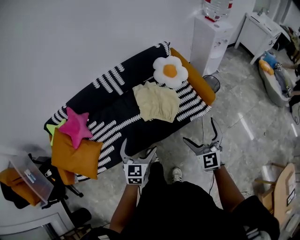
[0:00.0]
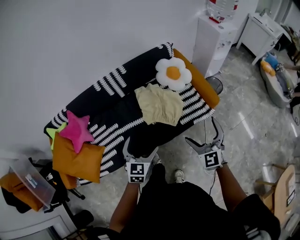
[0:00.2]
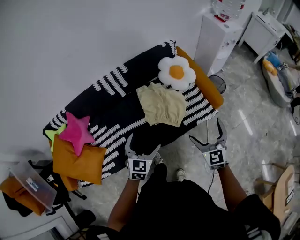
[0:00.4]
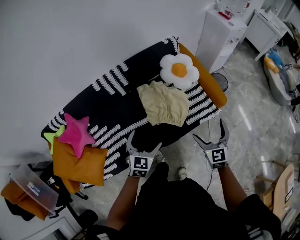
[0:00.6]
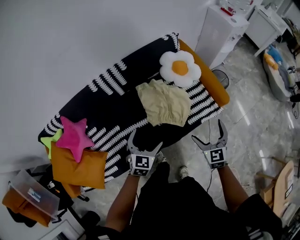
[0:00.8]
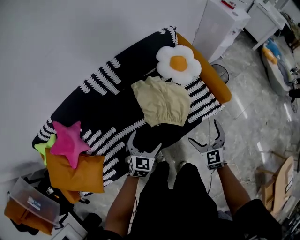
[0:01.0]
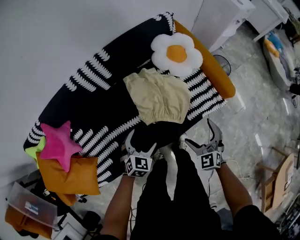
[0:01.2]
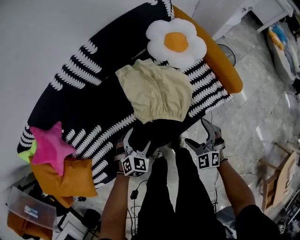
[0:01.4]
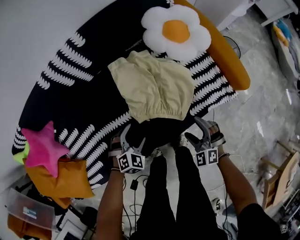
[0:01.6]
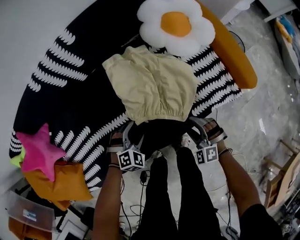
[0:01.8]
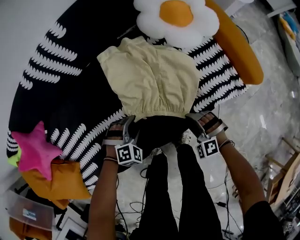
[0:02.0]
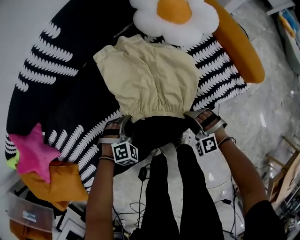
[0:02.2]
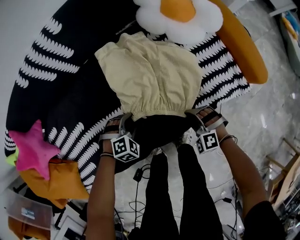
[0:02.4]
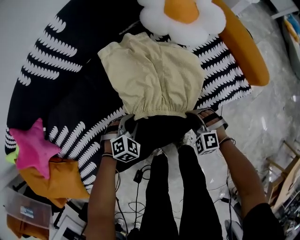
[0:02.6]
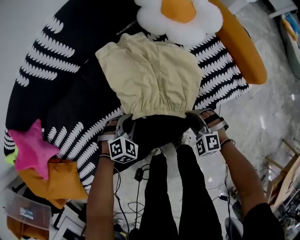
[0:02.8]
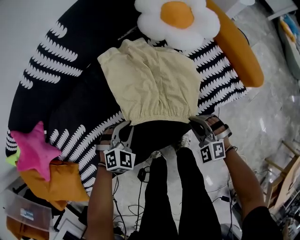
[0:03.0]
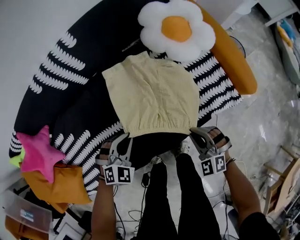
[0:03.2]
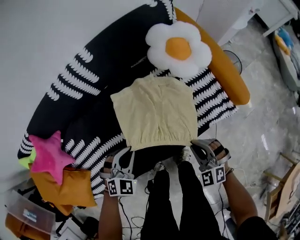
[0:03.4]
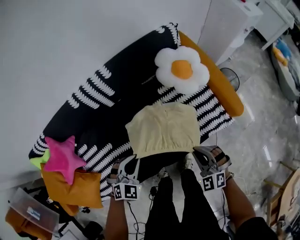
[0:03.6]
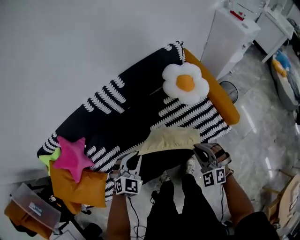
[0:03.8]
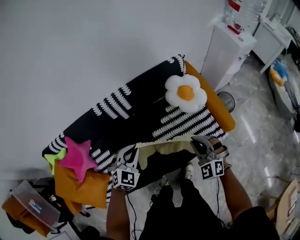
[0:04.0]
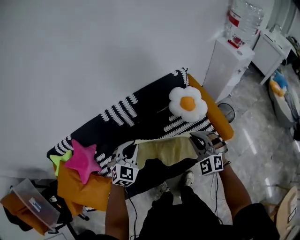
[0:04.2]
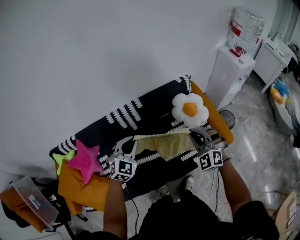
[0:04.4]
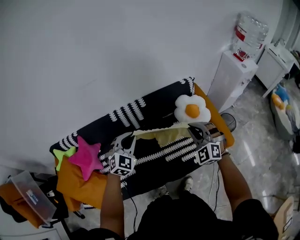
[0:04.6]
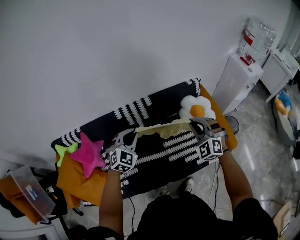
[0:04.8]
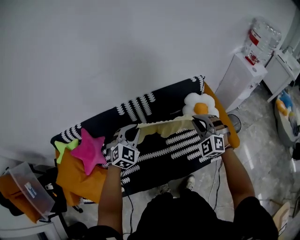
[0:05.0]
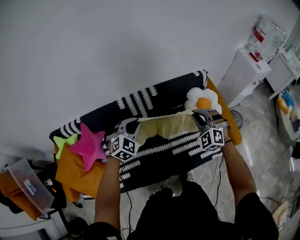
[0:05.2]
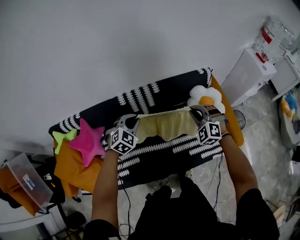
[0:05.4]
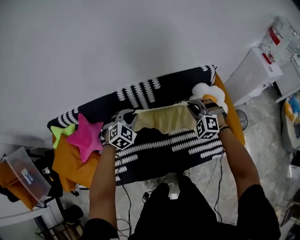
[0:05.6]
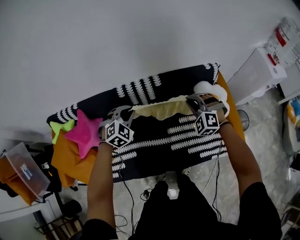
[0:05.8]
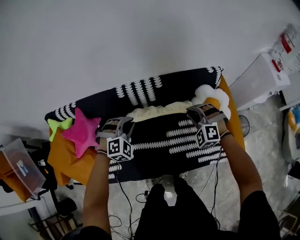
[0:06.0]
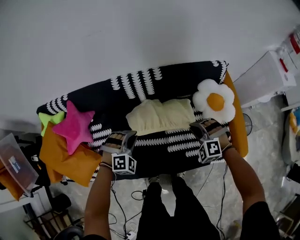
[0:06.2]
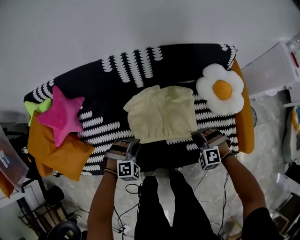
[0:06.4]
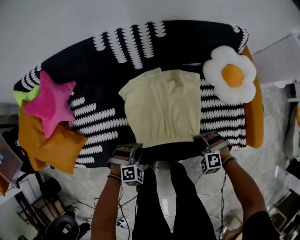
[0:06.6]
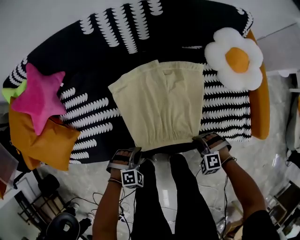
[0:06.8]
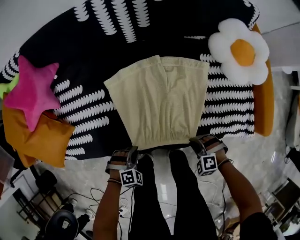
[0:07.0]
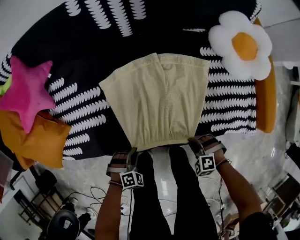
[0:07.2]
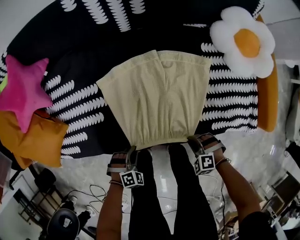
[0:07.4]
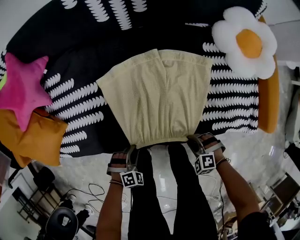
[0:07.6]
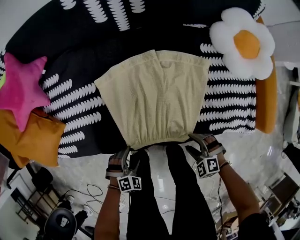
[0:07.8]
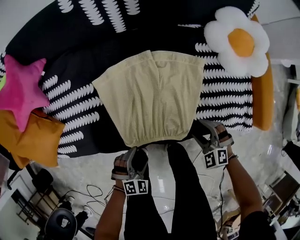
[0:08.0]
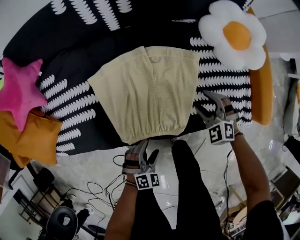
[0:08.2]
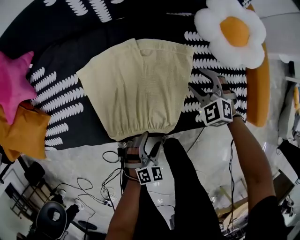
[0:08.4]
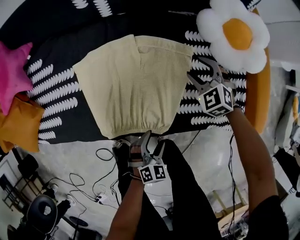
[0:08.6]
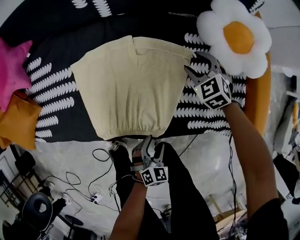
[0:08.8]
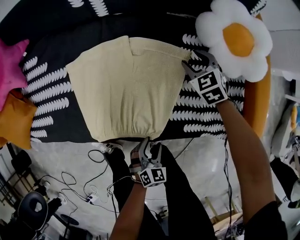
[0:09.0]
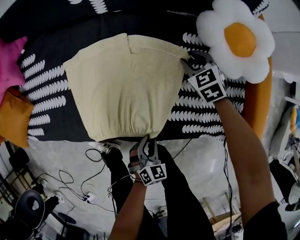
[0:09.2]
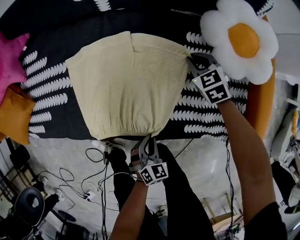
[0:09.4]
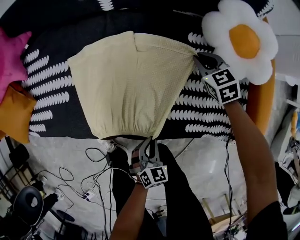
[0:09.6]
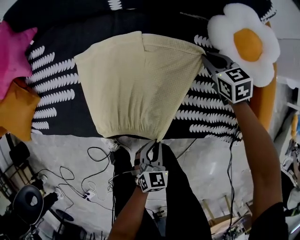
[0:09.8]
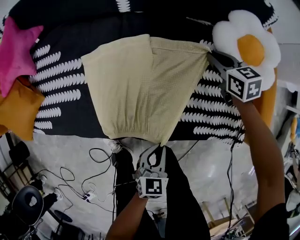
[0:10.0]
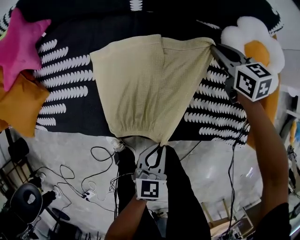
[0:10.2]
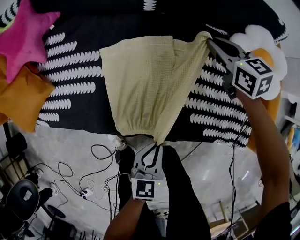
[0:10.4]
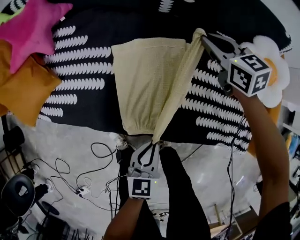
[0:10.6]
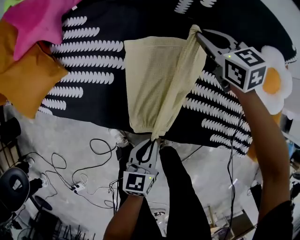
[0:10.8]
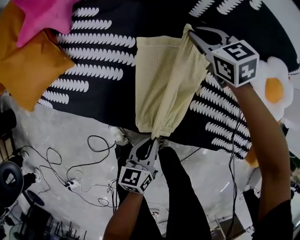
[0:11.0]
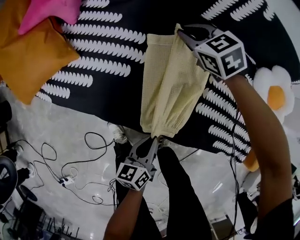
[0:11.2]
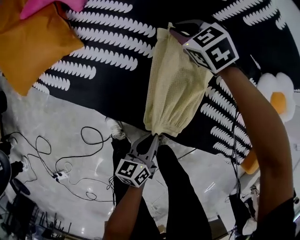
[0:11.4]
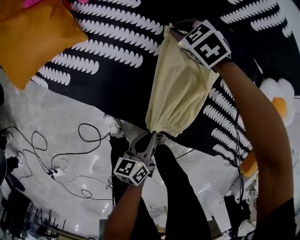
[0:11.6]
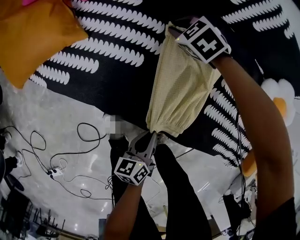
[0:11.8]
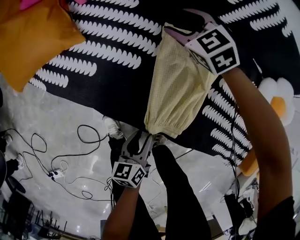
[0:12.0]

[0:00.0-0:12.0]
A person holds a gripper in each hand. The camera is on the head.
0:00.0 to 0:01.6: The left gripper shifts roughly 40 cm downward and forward, and points its fingers approximately 30 degrees further downward; the right gripper heads downward, covering approximately 40 cm, and tips its fingers downward by about 30 degrees.
0:01.6 to 0:03.0: The right gripper moves downward, about 5 cm, and closes its fingers. The left gripper closes.
0:03.0 to 0:04.4: Both grippers travel together upward, roughly 50 cm. The right gripper swivels approximately 30 degrees; the left gripper rotates some 30 degrees.
0:04.4 to 0:06.0: The left gripper moves downward, to the left and forward, about 15 cm, and swivels about 30 degrees, while the right gripper heads forward, downward and to the left, covering roughly 25 cm, and changes its angle by some 30 degrees.
0:06.0 to 0:07.6: The two grippers go some 60 cm downward and backward. The left gripper changes its angle by some 30 degrees. The right gripper changes its angle by approximately 40 degrees.
0:07.6 to 0:09.0: The left gripper heads to the right, covering approximately 25 cm, and rotates around the line of its fingers by roughly 40 degrees, counterclockwise from behind. The right gripper heads forward, covering approximately 35 cm, and changes its angle by about 40 degrees.
0:09.0 to 0:10.4: The grippers both shift upward, to the left and forward by approximately 20 cm. The left gripper turns by some 40 degrees, and closes its fingers; the right gripper turns by some 30 degrees.
0:10.4 to 0:12.0: The right gripper is displaced to the left by some 35 cm, twists about 40 degrees counterclockwise, seen from behind, and opens, while the left gripper moves to the left and downward, approximately 20 cm, and twists approximately 40 degrees counterclockwise, seen from behind.

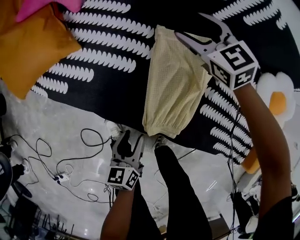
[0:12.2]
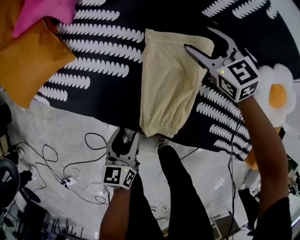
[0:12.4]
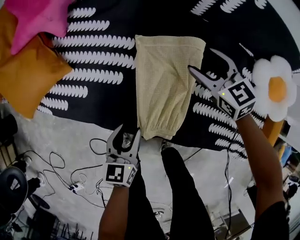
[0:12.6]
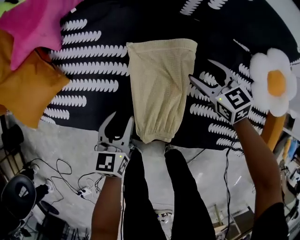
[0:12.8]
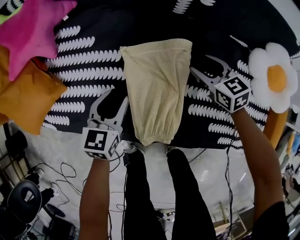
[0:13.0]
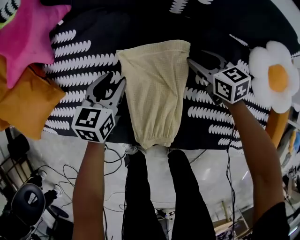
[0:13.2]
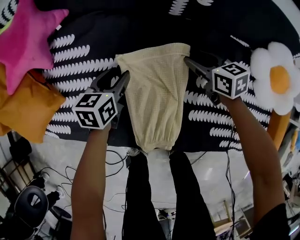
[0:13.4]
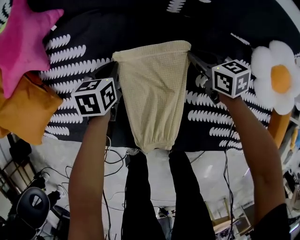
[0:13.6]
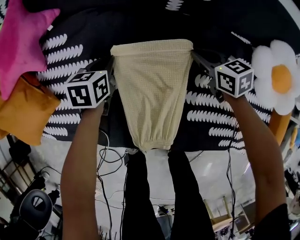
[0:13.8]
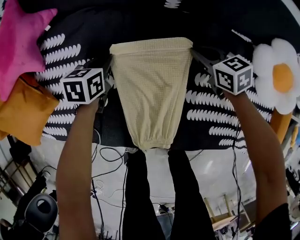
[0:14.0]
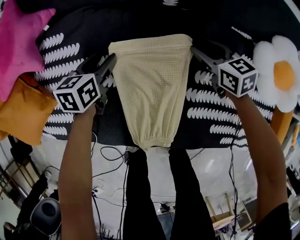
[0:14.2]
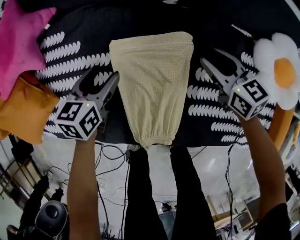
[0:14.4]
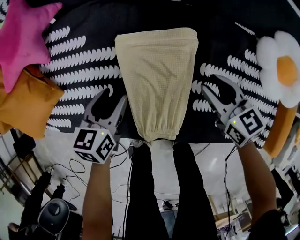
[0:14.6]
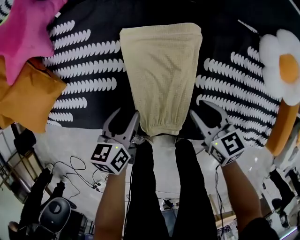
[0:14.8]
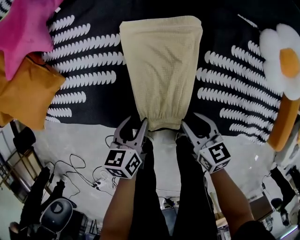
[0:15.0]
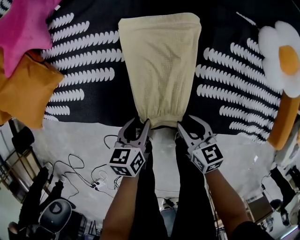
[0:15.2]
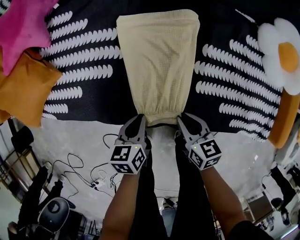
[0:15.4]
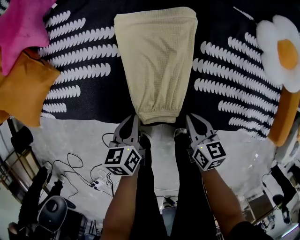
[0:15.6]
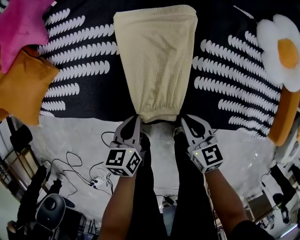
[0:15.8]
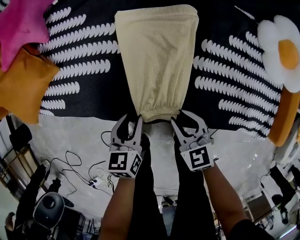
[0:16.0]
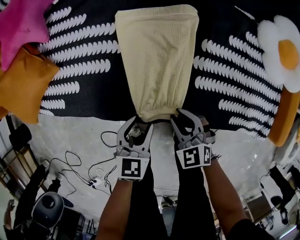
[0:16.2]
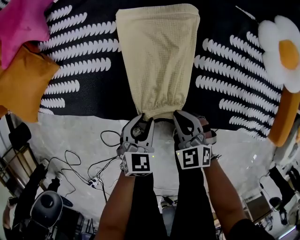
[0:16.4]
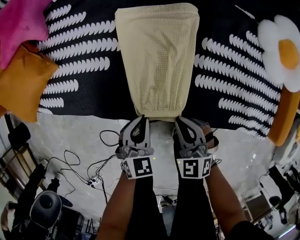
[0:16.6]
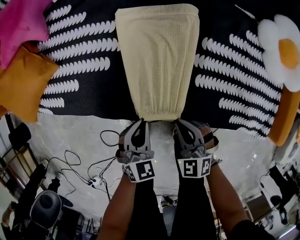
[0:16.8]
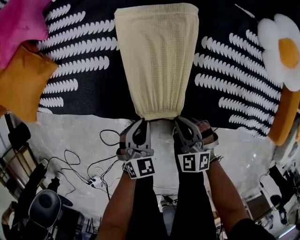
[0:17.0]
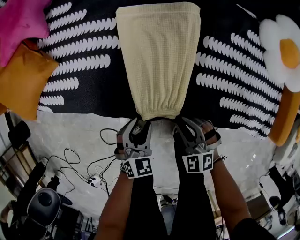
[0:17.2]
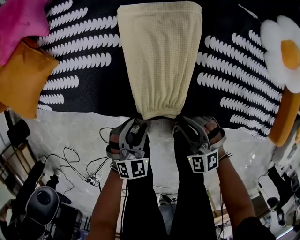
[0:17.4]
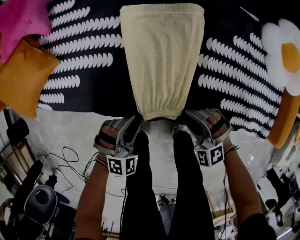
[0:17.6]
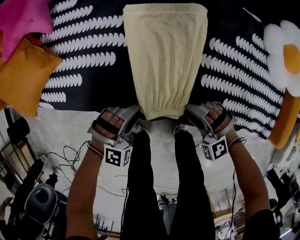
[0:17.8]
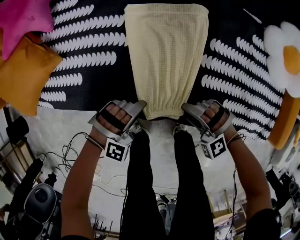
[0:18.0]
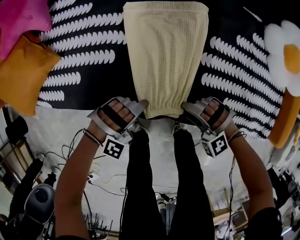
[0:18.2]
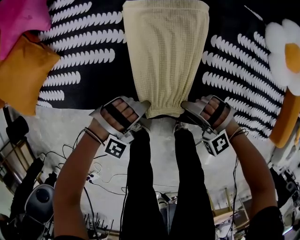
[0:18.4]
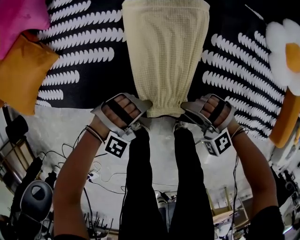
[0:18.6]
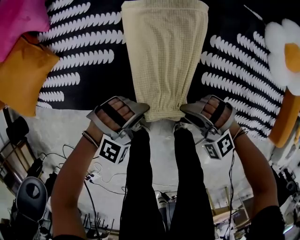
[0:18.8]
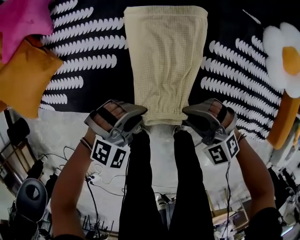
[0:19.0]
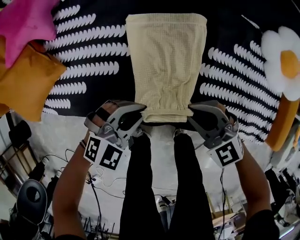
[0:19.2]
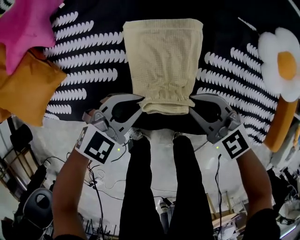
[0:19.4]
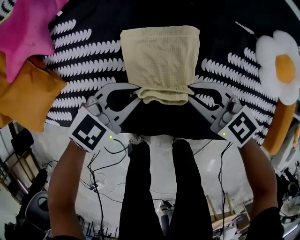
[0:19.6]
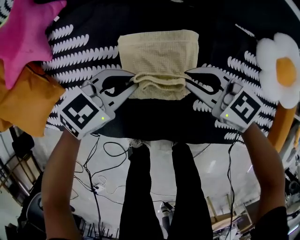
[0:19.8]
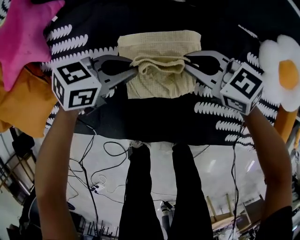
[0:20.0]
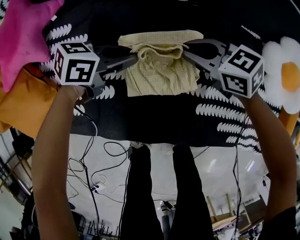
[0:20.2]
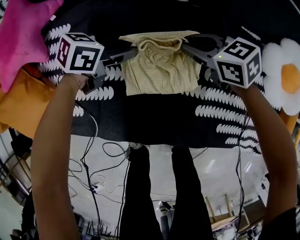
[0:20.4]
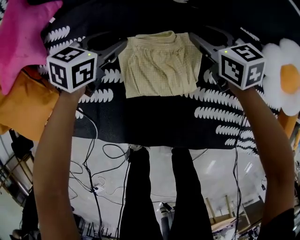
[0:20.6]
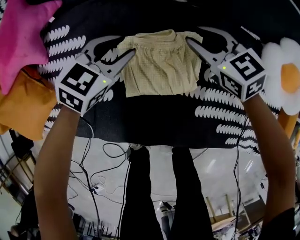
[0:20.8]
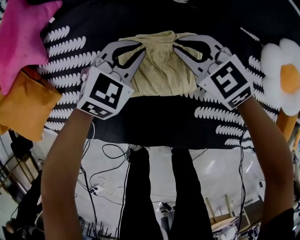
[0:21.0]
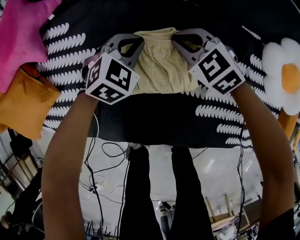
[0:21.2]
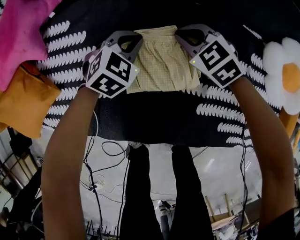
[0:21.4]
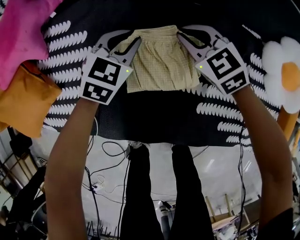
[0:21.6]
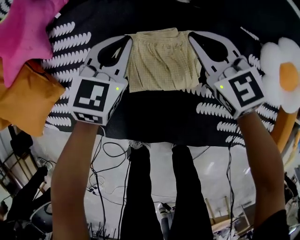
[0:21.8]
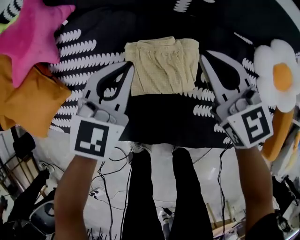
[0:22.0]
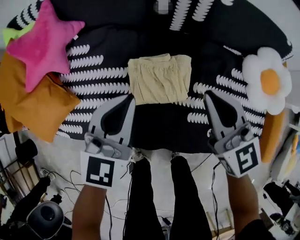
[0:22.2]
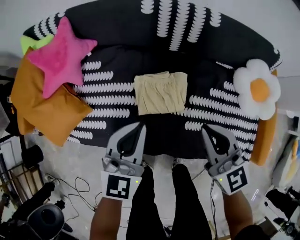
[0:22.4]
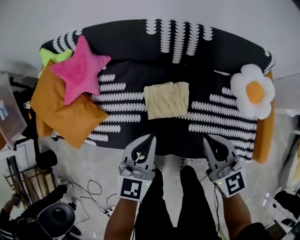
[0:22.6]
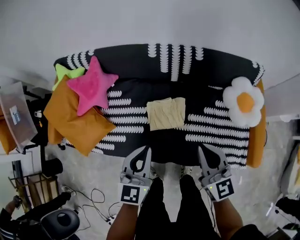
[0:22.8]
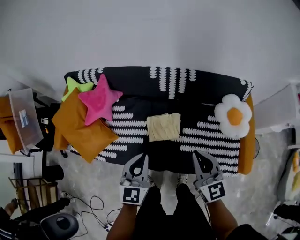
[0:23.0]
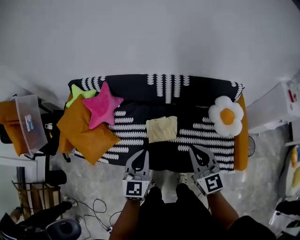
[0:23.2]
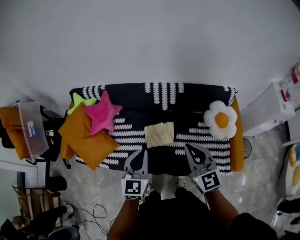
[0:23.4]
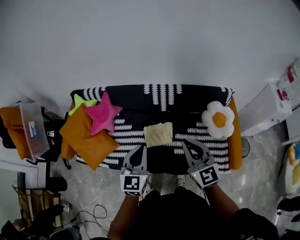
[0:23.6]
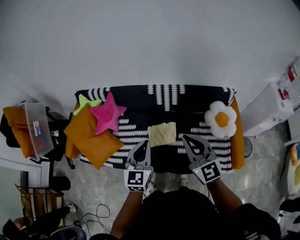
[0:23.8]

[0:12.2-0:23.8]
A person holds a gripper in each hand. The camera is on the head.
0:12.2 to 0:13.6: The right gripper shifts roughly 20 cm to the right and downward, twists roughly 40 degrees clockwise, seen from behind, and closes its fingers; the left gripper goes about 35 cm forward, changes its angle by approximately 30 degrees, and closes its fingers.
0:13.6 to 0:15.0: Both grippers move backward, approximately 30 cm.
0:15.0 to 0:16.6: Both grippers travel together backward, roughly 5 cm. The left gripper twists approximately 50 degrees clockwise, seen from behind. Meanwhile the right gripper twists roughly 50 degrees counterclockwise, seen from behind.
0:16.6 to 0:18.0: The left gripper rotates around the line of its fingers by about 80 degrees, clockwise from behind, while the right gripper rolls counterclockwise, seen from behind, by some 50 degrees.
0:18.0 to 0:19.4: The two grippers go about 20 cm upward and forward. The right gripper twists some 60 degrees clockwise, seen from behind; the left gripper rolls counterclockwise, seen from behind, by approximately 60 degrees.
0:19.4 to 0:21.0: The right gripper ends up about 20 cm from where it was; the left gripper ends up approximately 20 cm from where it was.
0:21.0 to 0:22.4: Both grippers travel together upward and backward, roughly 30 cm. The right gripper changes its angle by approximately 40 degrees. Meanwhile the left gripper swivels about 30 degrees.
0:22.4 to 0:23.8: Both grippers travel together upward, about 35 cm.
